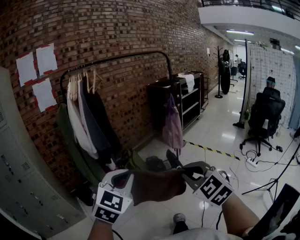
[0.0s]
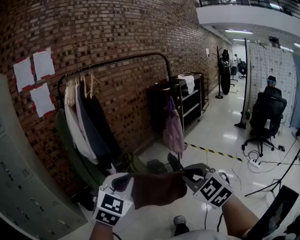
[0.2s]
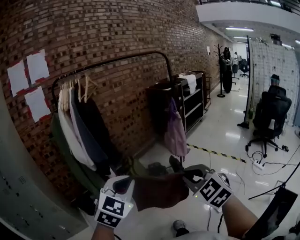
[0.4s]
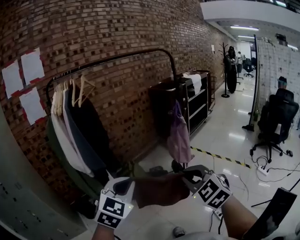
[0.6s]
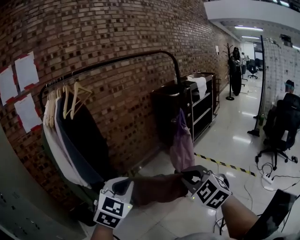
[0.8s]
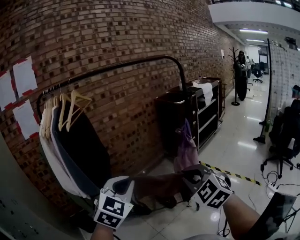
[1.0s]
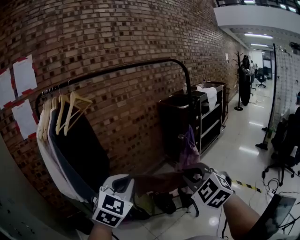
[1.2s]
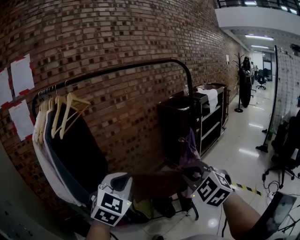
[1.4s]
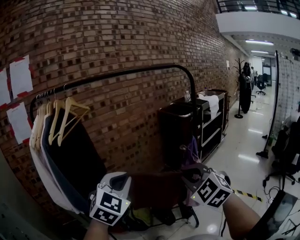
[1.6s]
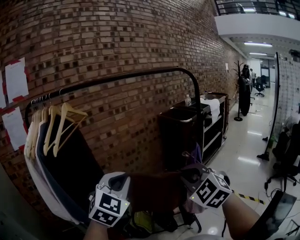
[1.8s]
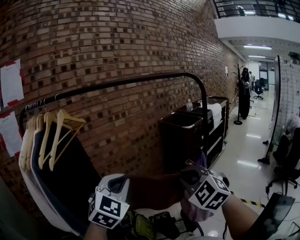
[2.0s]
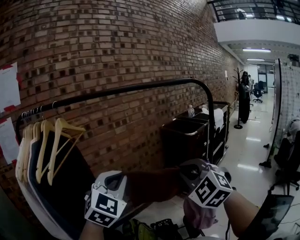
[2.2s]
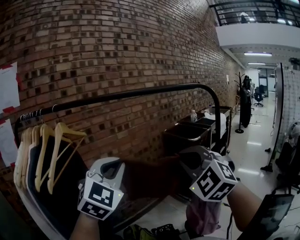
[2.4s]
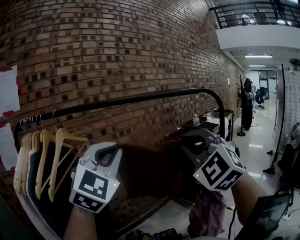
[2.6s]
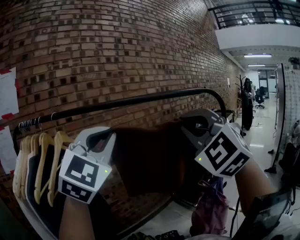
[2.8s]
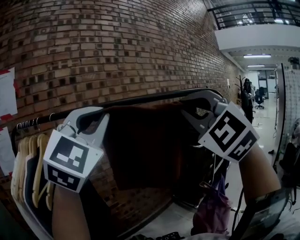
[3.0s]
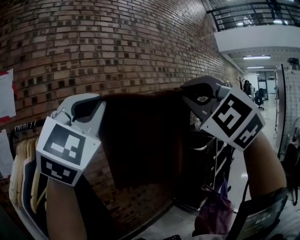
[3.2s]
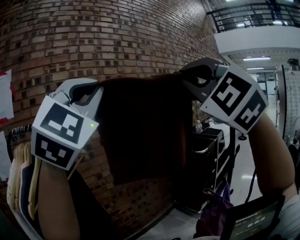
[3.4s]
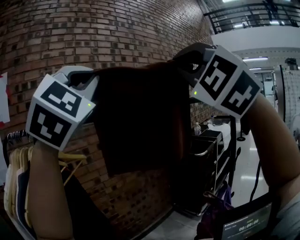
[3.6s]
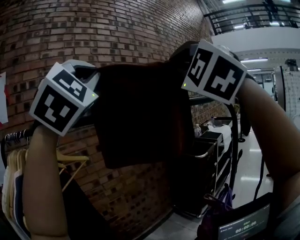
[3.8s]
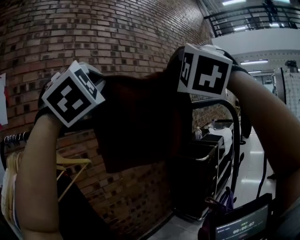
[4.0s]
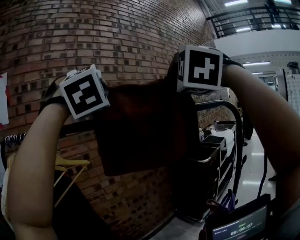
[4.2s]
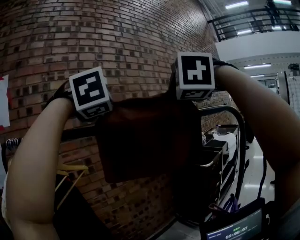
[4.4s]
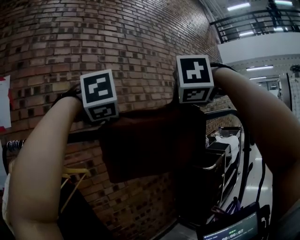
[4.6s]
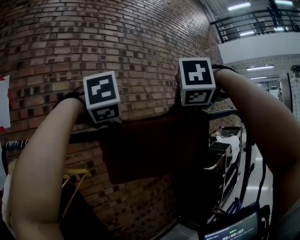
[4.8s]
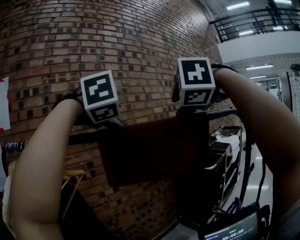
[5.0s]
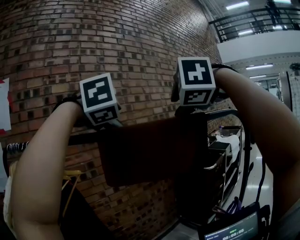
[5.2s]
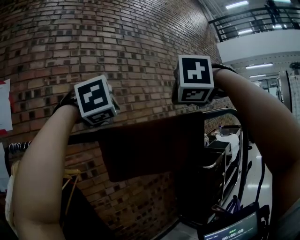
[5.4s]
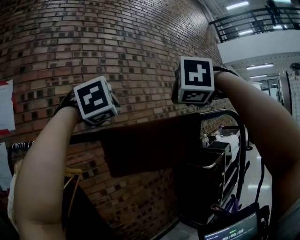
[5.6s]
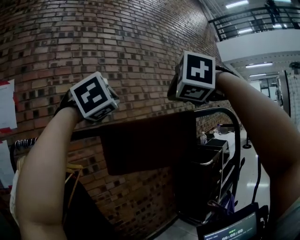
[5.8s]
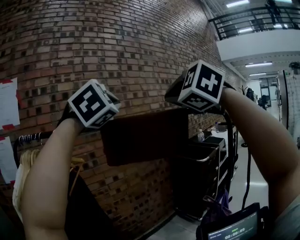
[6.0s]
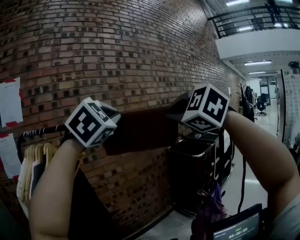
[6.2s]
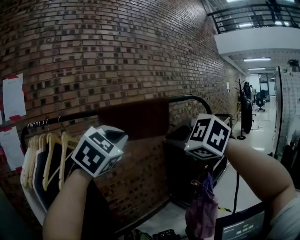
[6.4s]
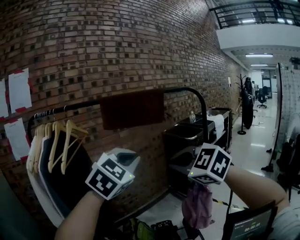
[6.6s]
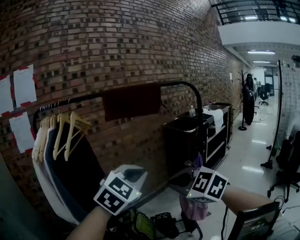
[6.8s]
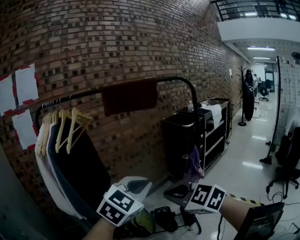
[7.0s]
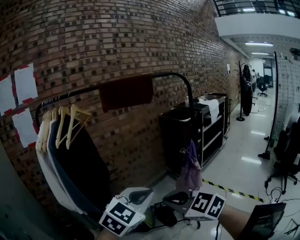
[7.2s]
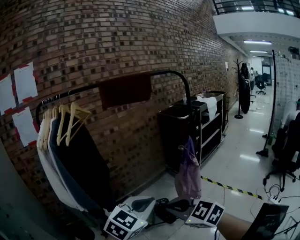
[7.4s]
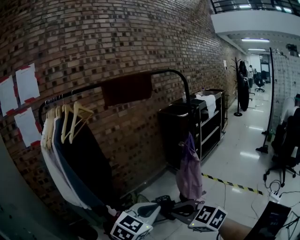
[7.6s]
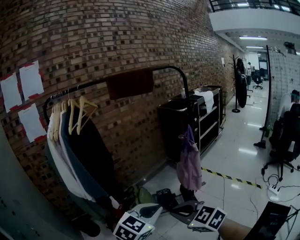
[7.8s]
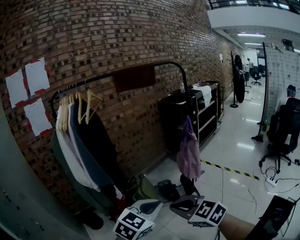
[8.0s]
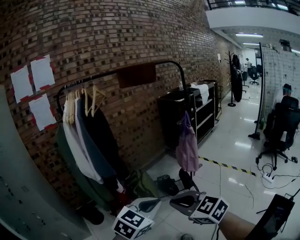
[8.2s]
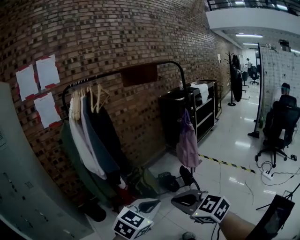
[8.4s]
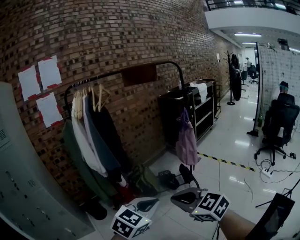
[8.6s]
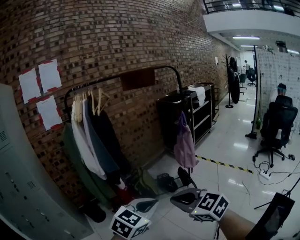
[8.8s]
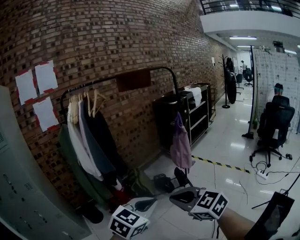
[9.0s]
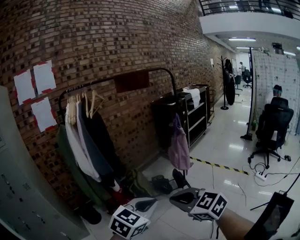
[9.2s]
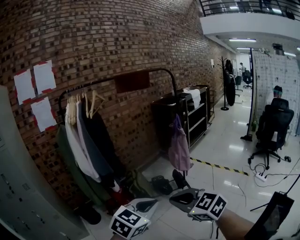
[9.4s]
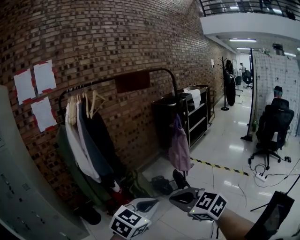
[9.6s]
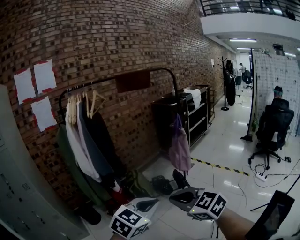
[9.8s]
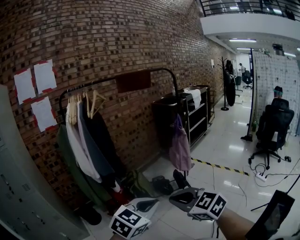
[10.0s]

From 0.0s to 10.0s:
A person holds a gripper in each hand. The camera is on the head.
From 0.0s to 1.4s: Both grippers are carried forward, some 50 cm.
From 1.4s to 2.8s: Both grippers travel together upward and forward, approximately 40 cm. The left gripper turns by about 30 degrees. Meanwhile the right gripper turns by approximately 30 degrees.
From 2.8s to 4.2s: The left gripper travels forward and upward by some 20 cm, and rotates roughly 40 degrees. The right gripper moves upward and forward, roughly 20 cm, and rotates roughly 30 degrees.
From 4.2s to 5.8s: The left gripper opens, then closes once more; the right gripper opens, then closes again.
From 5.8s to 7.2s: Both grippers are carried backward, roughly 50 cm. Both grippers move downward, approximately 40 cm. The left gripper rotates around the line of its fingers by some 40 degrees, counterclockwise from behind, while the right gripper turns by approximately 50 degrees.
From 7.2s to 8.6s: The grippers both shift backward by roughly 40 cm.
From 8.6s to 10.0s: The grippers move only a little.

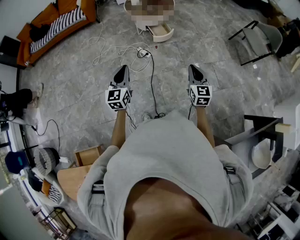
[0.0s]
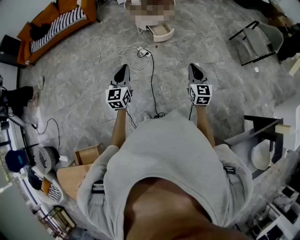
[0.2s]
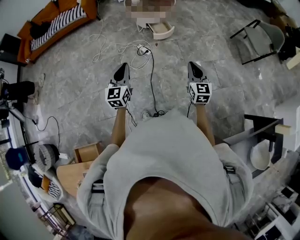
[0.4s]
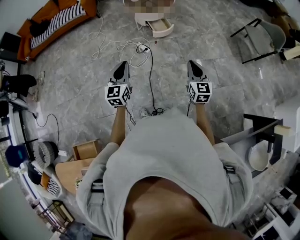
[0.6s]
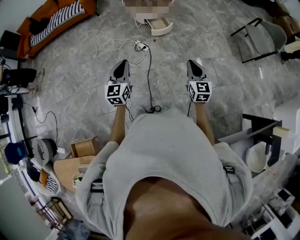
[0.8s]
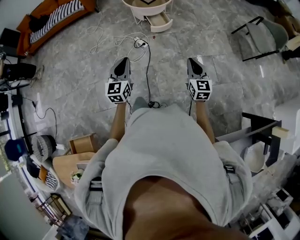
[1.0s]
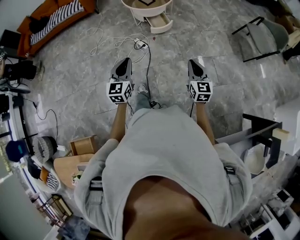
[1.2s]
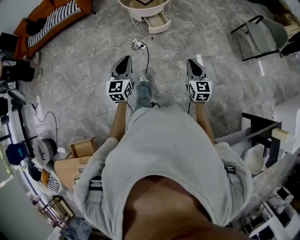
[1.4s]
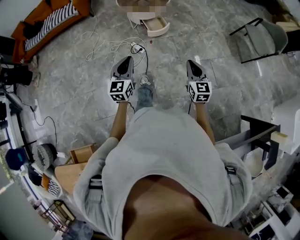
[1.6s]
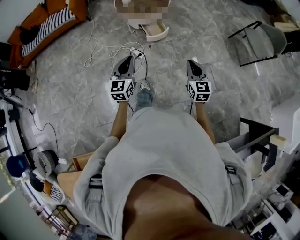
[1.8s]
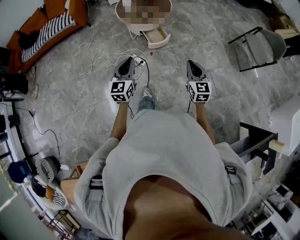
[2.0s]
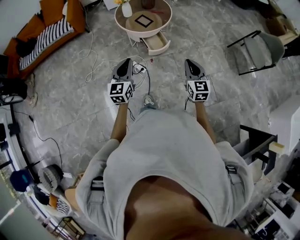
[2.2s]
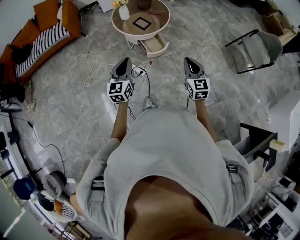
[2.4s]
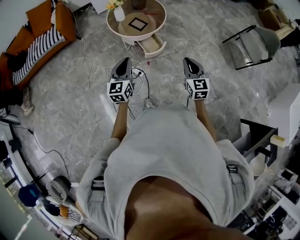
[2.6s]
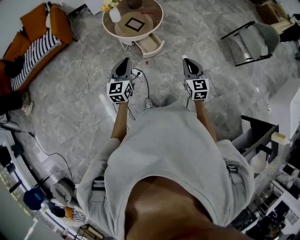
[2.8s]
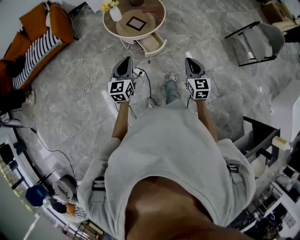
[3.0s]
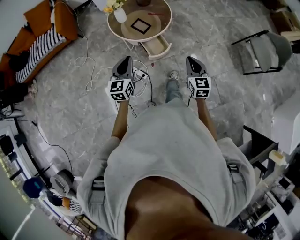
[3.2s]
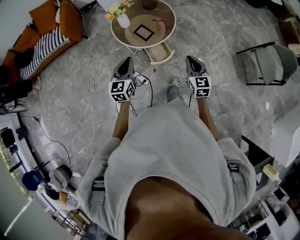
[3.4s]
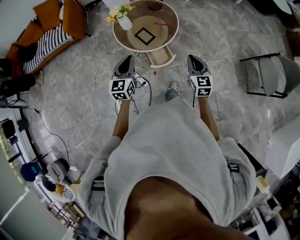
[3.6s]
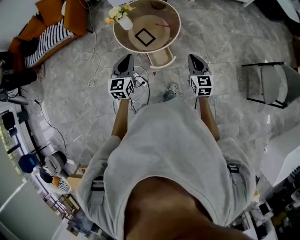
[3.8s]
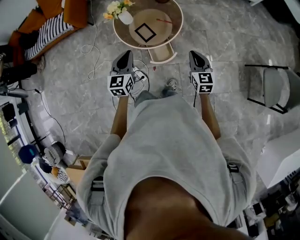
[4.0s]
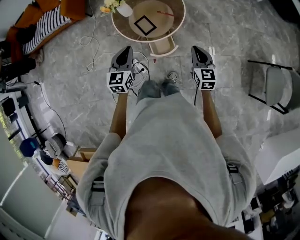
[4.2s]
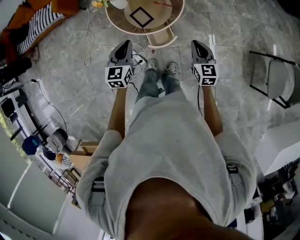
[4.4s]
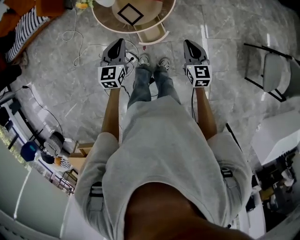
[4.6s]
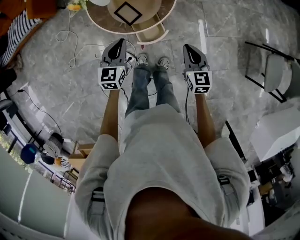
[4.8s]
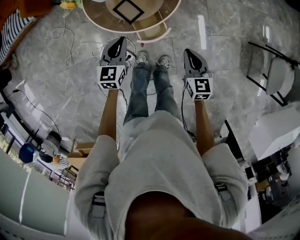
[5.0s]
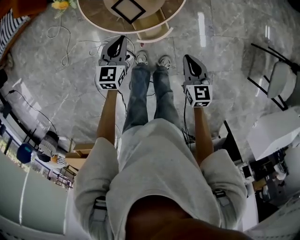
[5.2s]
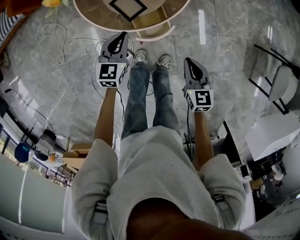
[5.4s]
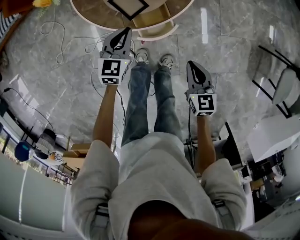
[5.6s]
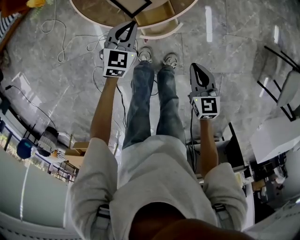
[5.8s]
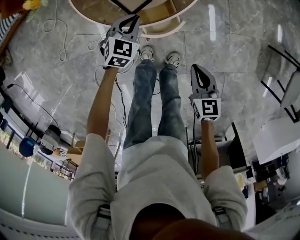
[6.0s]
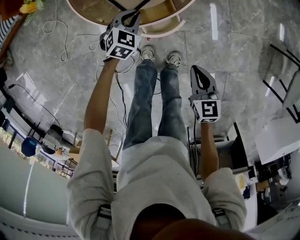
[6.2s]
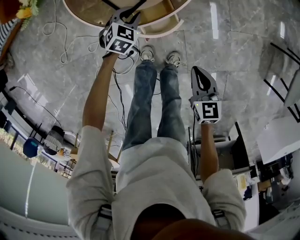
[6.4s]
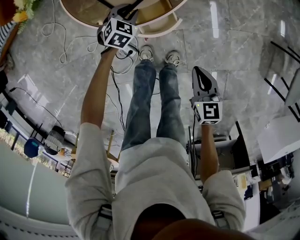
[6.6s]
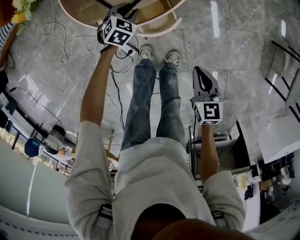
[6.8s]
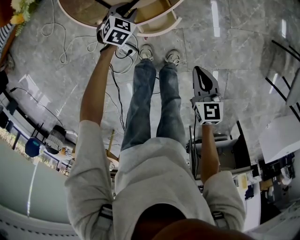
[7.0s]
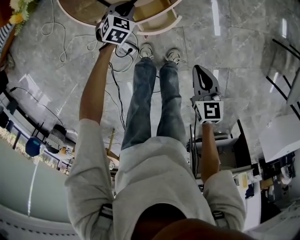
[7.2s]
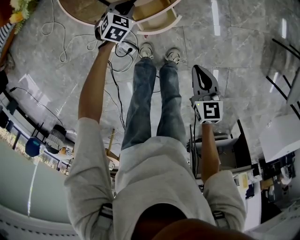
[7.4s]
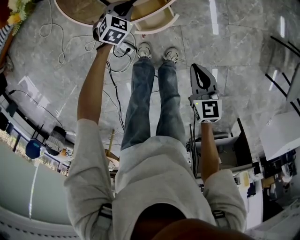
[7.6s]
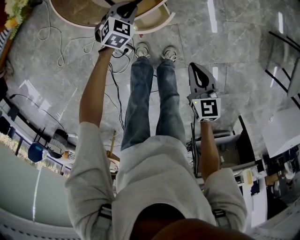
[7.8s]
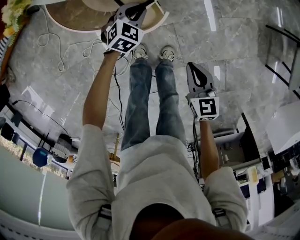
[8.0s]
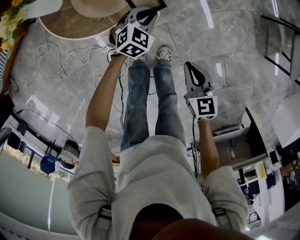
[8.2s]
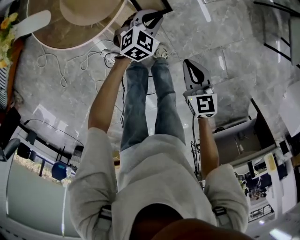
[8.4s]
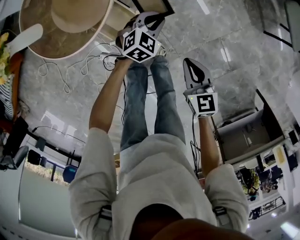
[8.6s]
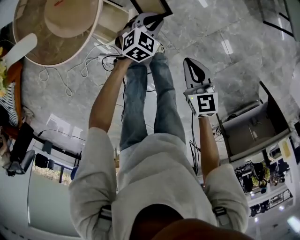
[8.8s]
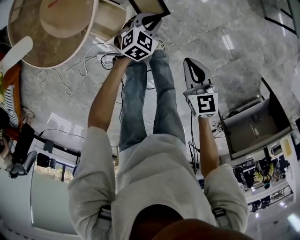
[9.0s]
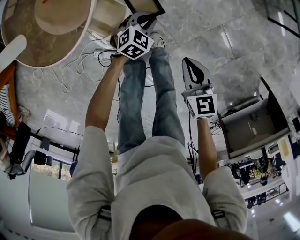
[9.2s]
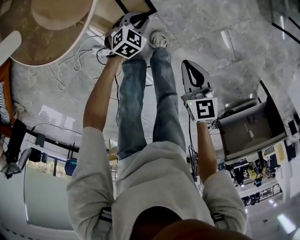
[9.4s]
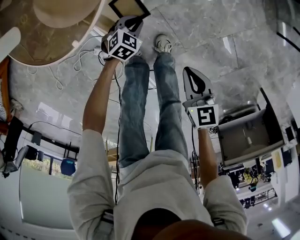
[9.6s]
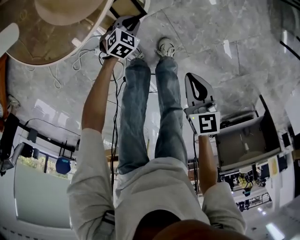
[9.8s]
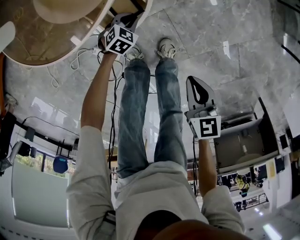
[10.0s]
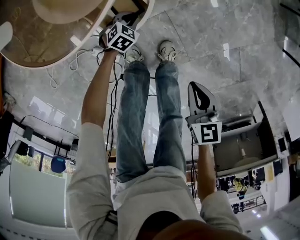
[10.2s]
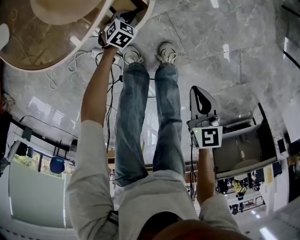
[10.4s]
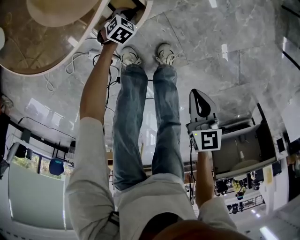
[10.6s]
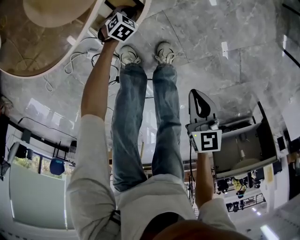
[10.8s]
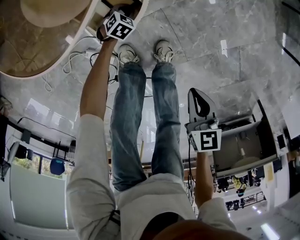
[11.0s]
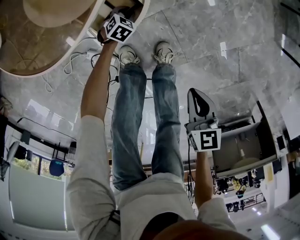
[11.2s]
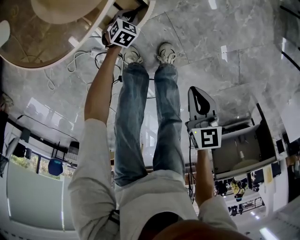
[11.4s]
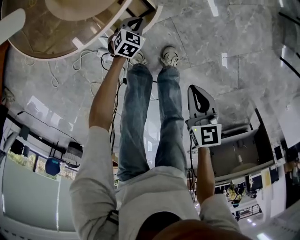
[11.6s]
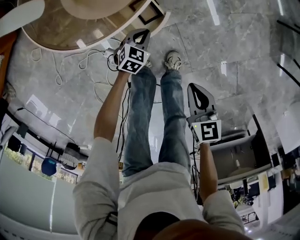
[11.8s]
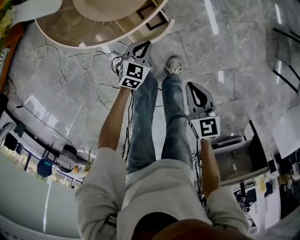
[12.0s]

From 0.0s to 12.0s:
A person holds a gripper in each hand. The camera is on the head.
From 0.0s to 1.6s: The left gripper goes about 15 cm to the right and forward; the right gripper is displaced forward and to the right by roughly 10 cm.
From 1.6s to 3.0s: Both grippers move forward, roughly 35 cm.
From 3.0s to 4.4s: The right gripper travels forward by roughly 35 cm, and swivels approximately 20 degrees. The left gripper travels forward and to the right by about 30 cm.
From 4.4s to 6.0s: Both grippers travel together downward, about 35 cm. The left gripper rotates some 30 degrees.
From 6.0s to 7.6s: The left gripper is displaced downward by approximately 10 cm.
From 7.6s to 9.0s: The left gripper moves roughly 5 cm upward and comes back, and changes its angle by some 40 degrees. The right gripper shifts by roughly 15 cm, and swivels roughly 20 degrees.
From 9.0s to 10.4s: The right gripper goes some 15 cm downward and to the left. The left gripper goes some 35 cm downward and to the left, and changes its angle by about 30 degrees.
From 10.4s to 12.0s: The right gripper moves to the left and upward, about 15 cm, while the left gripper goes some 25 cm upward, and turns by roughly 30 degrees.

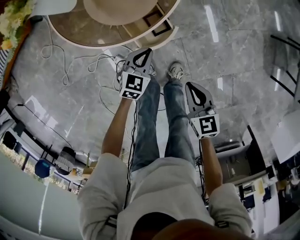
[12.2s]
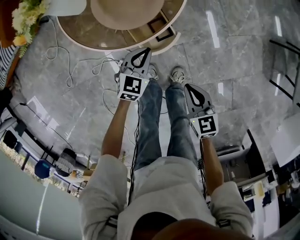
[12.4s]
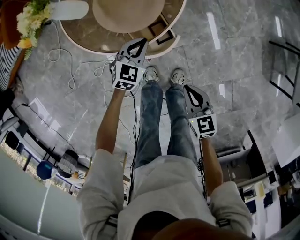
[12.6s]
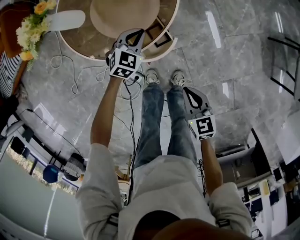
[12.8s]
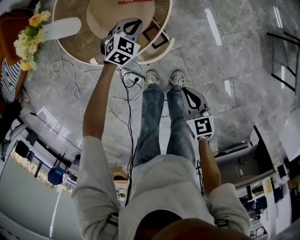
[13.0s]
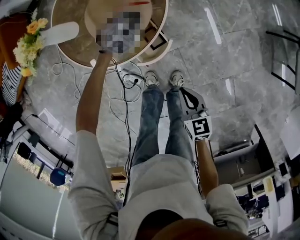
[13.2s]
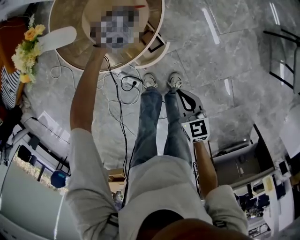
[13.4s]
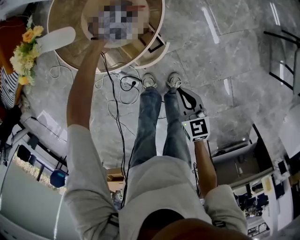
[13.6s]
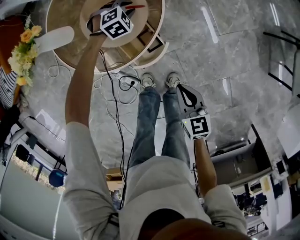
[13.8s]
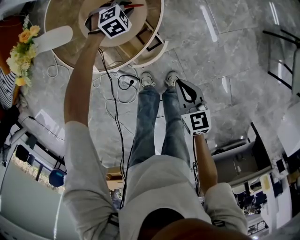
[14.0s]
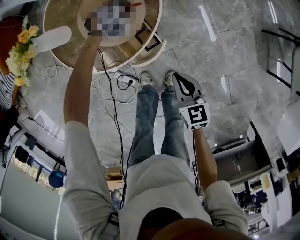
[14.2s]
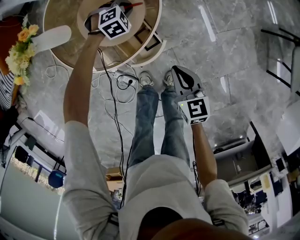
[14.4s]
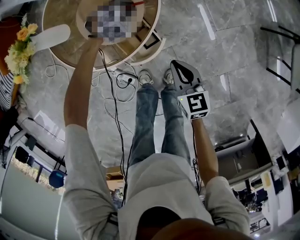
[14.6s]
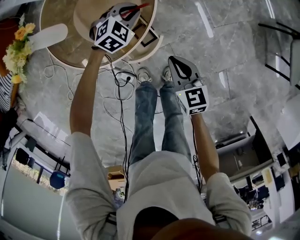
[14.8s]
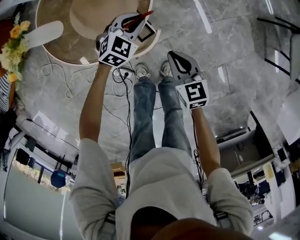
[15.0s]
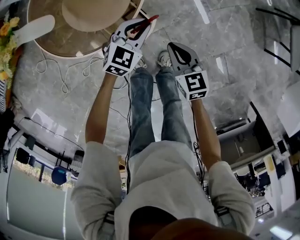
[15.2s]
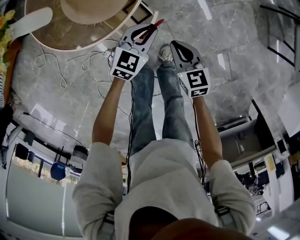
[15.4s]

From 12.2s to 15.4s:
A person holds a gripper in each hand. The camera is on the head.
From 12.2s to 13.8s: The left gripper goes approximately 30 cm forward, rolls clockwise, seen from behind, by about 50 degrees, and opens up. Meanwhile the right gripper moves forward, about 10 cm.
From 13.8s to 15.4s: The right gripper shifts about 5 cm downward, while the left gripper is displaced backward and to the right by approximately 25 cm, and angles its fingers upward, by some 30 degrees.
